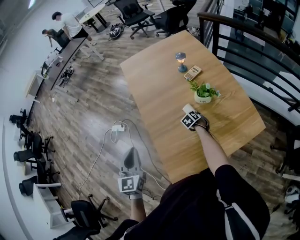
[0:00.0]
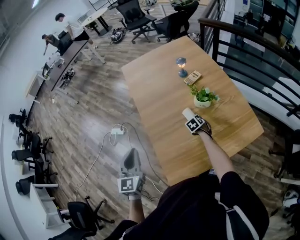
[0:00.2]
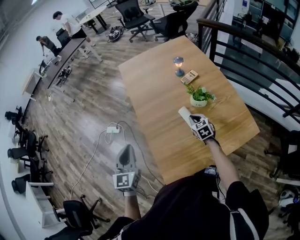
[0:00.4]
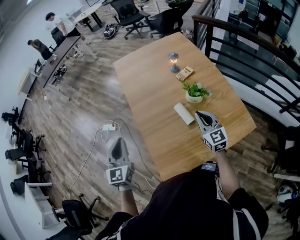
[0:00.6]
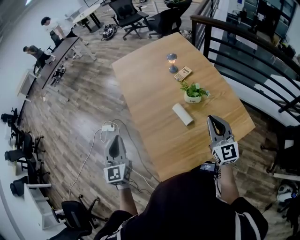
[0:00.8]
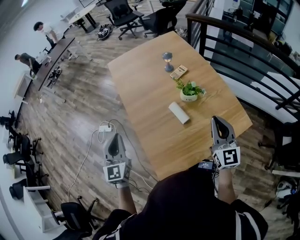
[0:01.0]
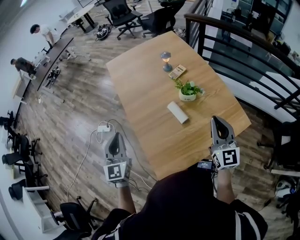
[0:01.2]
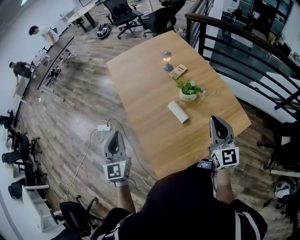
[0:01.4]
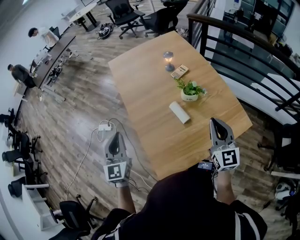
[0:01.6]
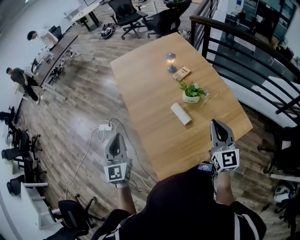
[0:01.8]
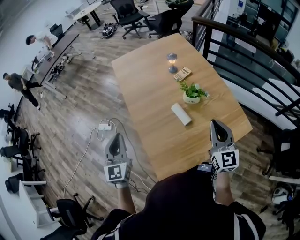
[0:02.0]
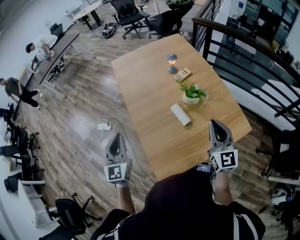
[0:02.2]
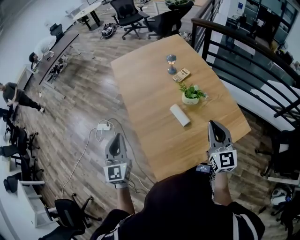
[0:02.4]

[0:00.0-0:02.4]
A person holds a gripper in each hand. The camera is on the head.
0.0 to 1.2 s: The right gripper shifts some 40 cm upward and backward, and tips its fingers upward by about 70 degrees. Meanwhile the left gripper changes place by roughly 5 cm.
1.2 to 2.4 s: The grippers make only small movements.

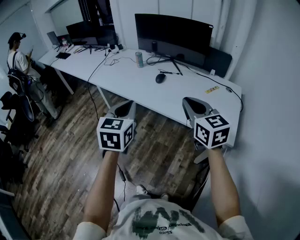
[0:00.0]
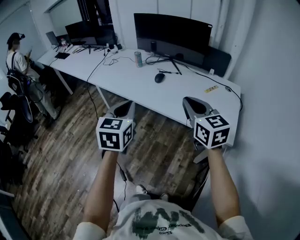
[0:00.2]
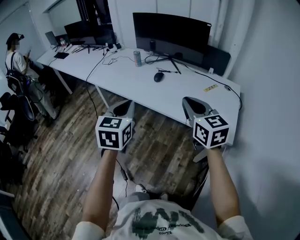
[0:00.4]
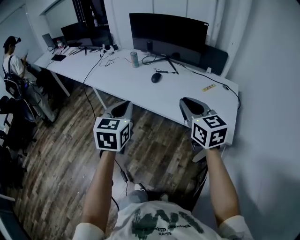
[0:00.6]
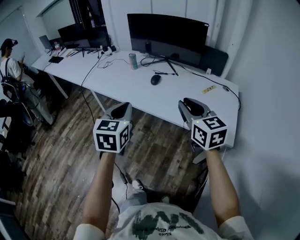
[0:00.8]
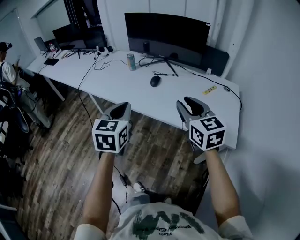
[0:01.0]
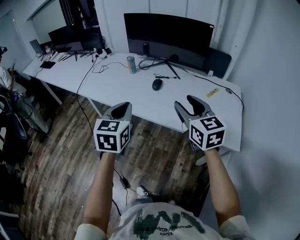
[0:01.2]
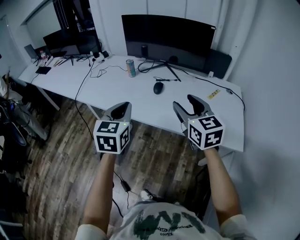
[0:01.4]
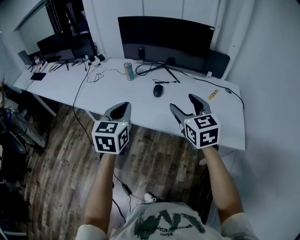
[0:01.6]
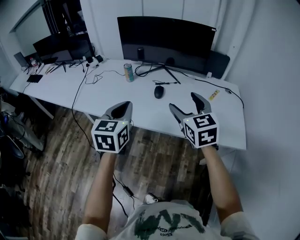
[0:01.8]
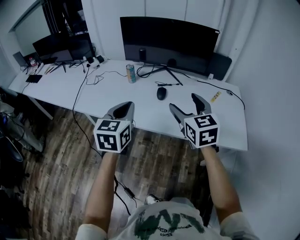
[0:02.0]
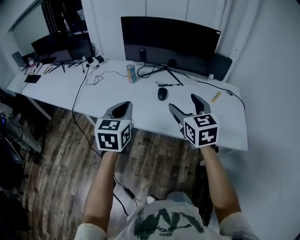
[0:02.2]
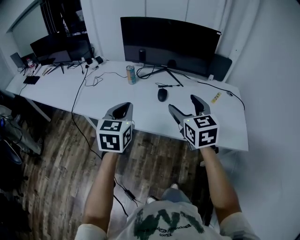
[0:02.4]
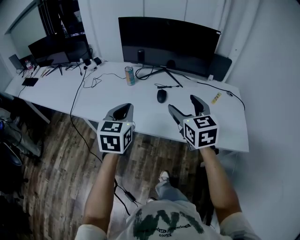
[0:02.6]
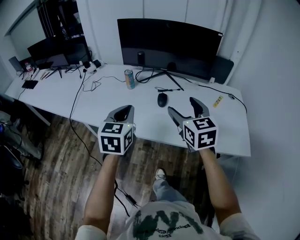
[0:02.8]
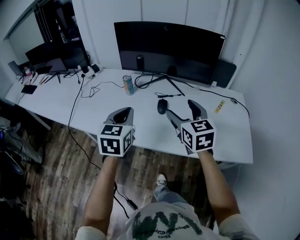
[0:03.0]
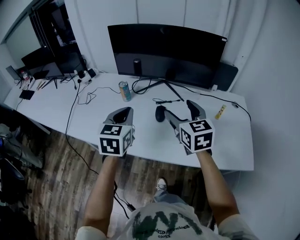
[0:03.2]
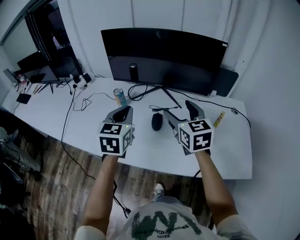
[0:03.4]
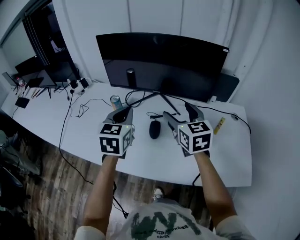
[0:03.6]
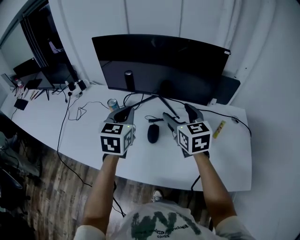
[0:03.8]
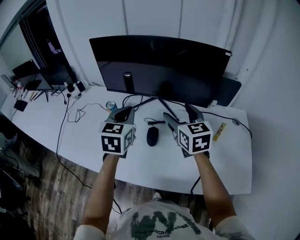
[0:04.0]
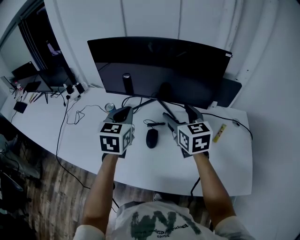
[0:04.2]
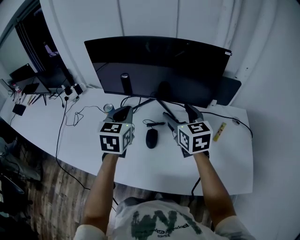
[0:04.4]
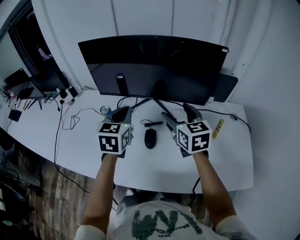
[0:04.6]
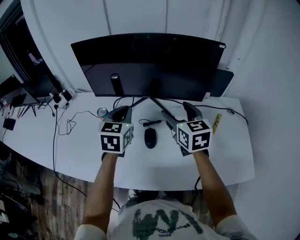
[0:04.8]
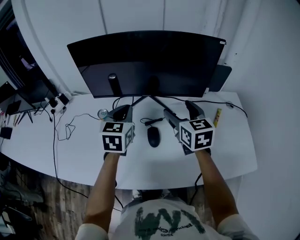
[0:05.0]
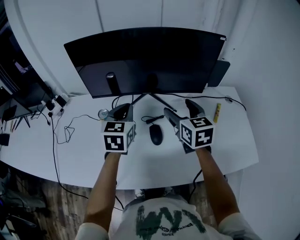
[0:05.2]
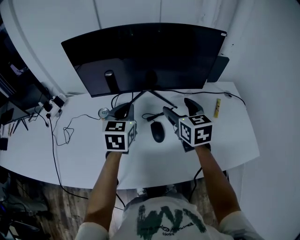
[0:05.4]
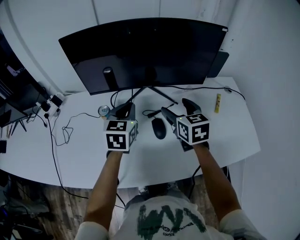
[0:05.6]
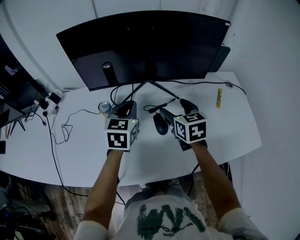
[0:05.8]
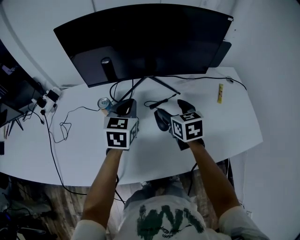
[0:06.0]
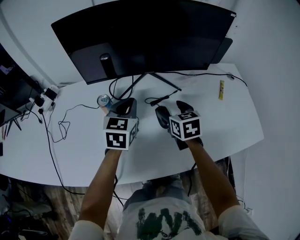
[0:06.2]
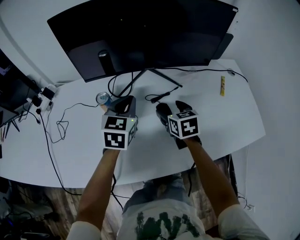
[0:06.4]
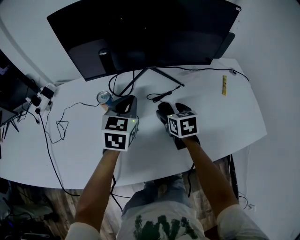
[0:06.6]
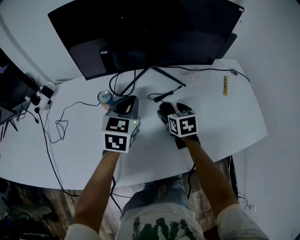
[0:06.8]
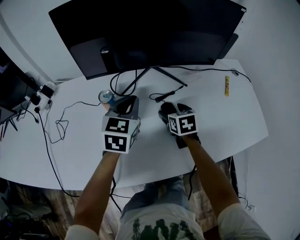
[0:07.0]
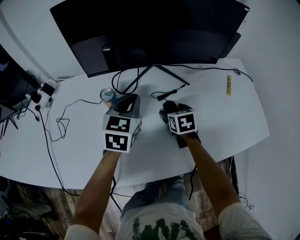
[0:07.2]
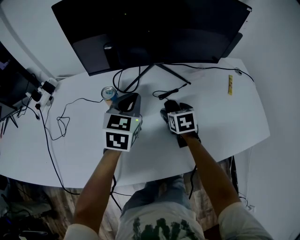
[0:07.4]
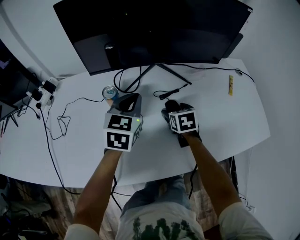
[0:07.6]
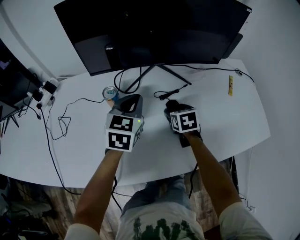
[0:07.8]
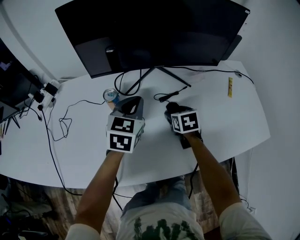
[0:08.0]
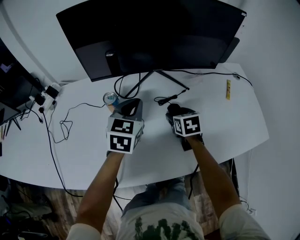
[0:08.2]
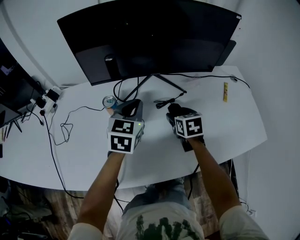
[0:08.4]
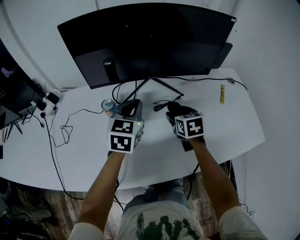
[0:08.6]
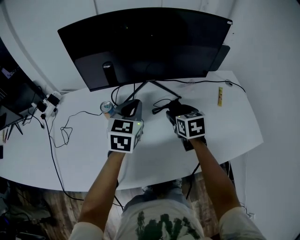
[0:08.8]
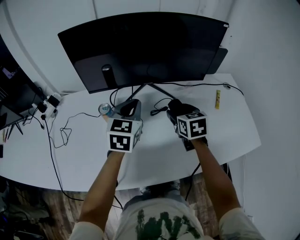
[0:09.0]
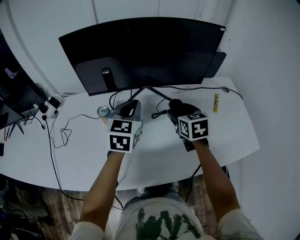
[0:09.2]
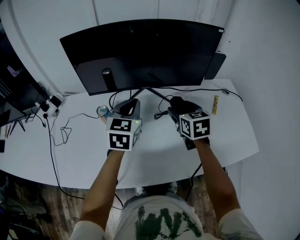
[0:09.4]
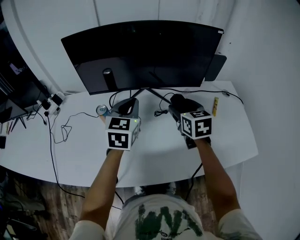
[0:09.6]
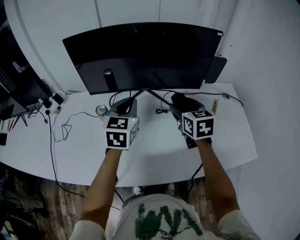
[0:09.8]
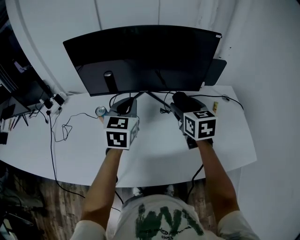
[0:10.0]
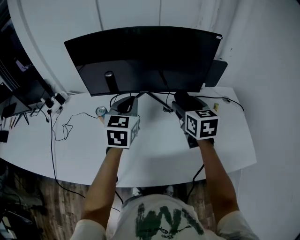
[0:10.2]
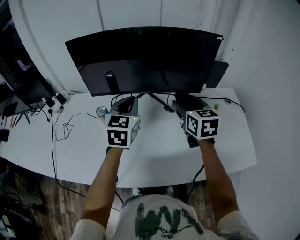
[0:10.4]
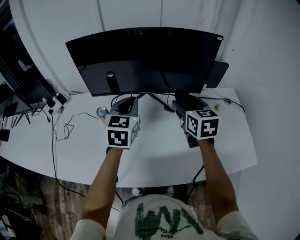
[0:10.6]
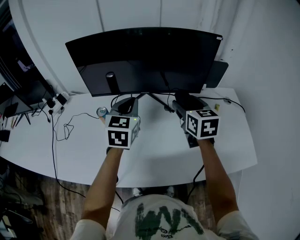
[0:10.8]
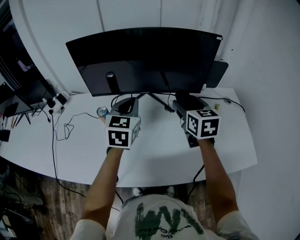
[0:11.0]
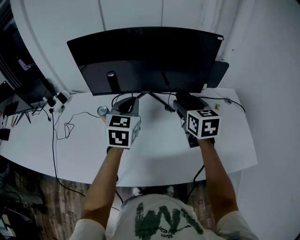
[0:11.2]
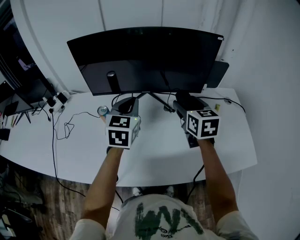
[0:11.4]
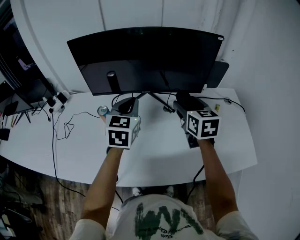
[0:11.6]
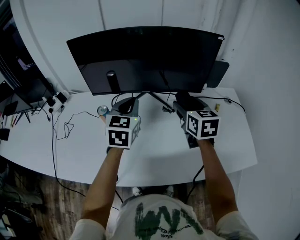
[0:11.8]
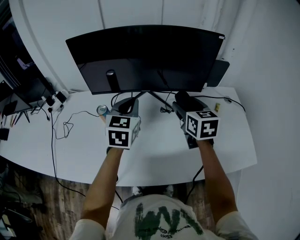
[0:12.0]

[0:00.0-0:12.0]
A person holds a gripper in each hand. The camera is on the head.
0.0 to 1.6 s: The right gripper is displaced forward and to the left by approximately 15 cm, and opens up, while the left gripper travels forward by roughly 20 cm.
1.6 to 3.0 s: Both grippers move forward, approximately 10 cm.
3.0 to 4.4 s: The grippers both shift forward by about 20 cm.
4.4 to 6.0 s: The left gripper travels downward by some 10 cm, and turns by about 20 degrees, while the right gripper is displaced downward and to the left by roughly 15 cm, and changes its angle by roughly 20 degrees.
6.0 to 7.6 s: The right gripper goes approximately 15 cm downward.
7.6 to 9.0 s: The left gripper moves upward, approximately 5 cm, while the right gripper goes roughly 15 cm upward and to the right.
9.0 to 10.4 s: The right gripper goes some 15 cm upward and to the right. The left gripper moves upward, approximately 5 cm.
10.4 to 12.0 s: Both grippers stay about where they are.

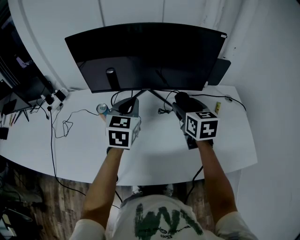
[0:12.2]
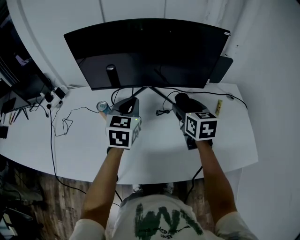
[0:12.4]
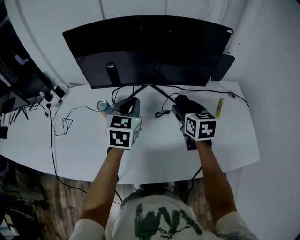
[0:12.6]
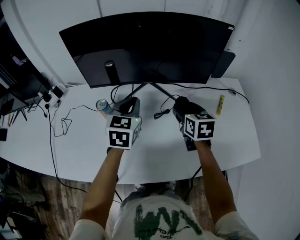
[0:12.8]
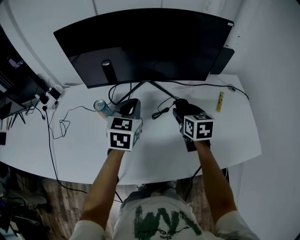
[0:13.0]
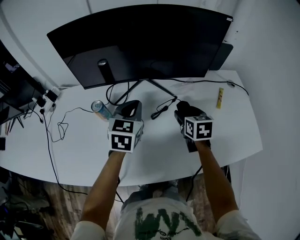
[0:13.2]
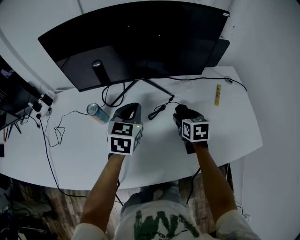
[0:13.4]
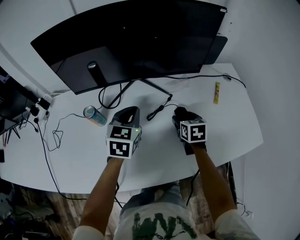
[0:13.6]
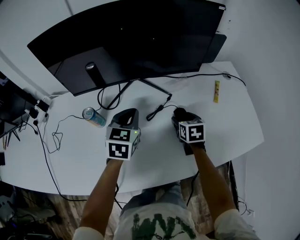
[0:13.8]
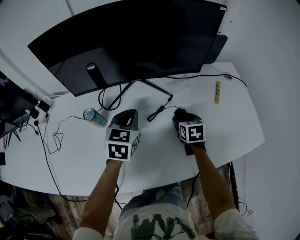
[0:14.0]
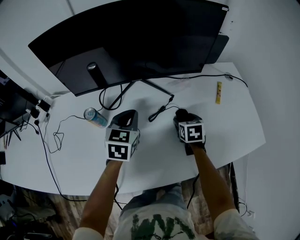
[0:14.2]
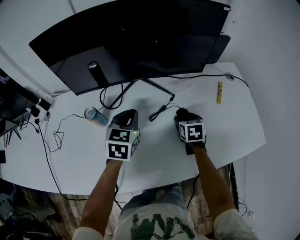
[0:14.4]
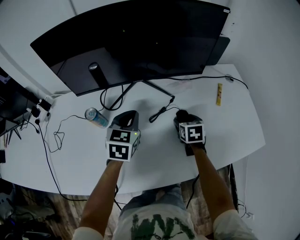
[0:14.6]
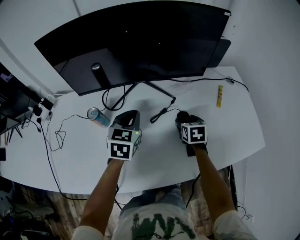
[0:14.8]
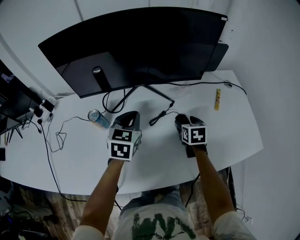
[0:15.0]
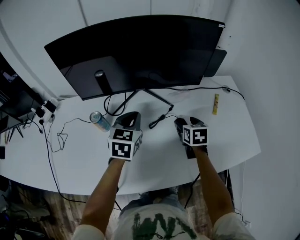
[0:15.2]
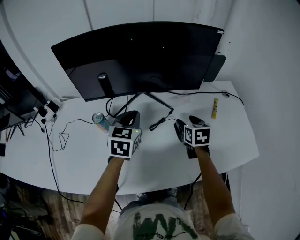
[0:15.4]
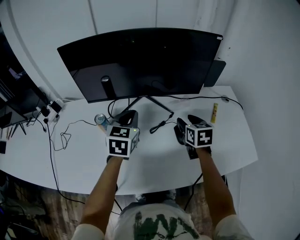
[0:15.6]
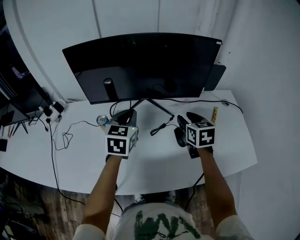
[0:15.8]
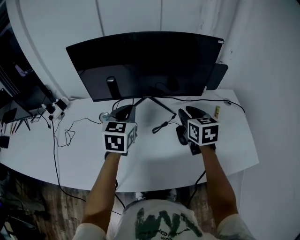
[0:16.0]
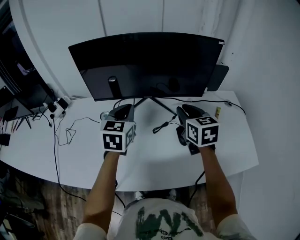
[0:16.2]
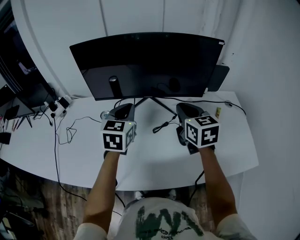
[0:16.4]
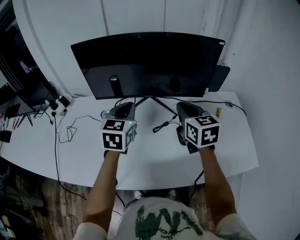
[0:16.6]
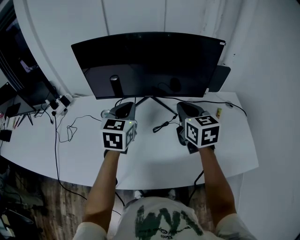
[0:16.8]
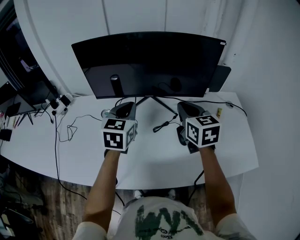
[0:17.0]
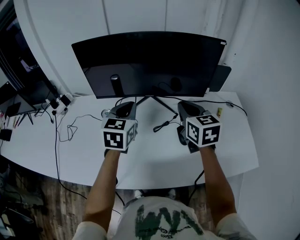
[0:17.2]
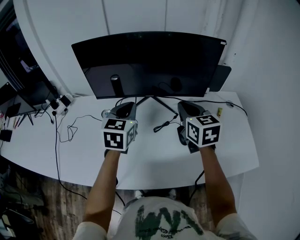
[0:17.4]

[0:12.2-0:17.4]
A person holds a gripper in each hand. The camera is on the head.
12.2 to 14.0 s: The left gripper moves downward, roughly 10 cm. The right gripper shifts approximately 20 cm downward, and swivels some 30 degrees.
14.0 to 15.6 s: The right gripper is displaced upward by roughly 15 cm; the left gripper shifts roughly 5 cm upward.
15.6 to 17.4 s: The left gripper heads upward, covering approximately 5 cm. The right gripper travels upward and to the left by approximately 15 cm, and closes its fingers.

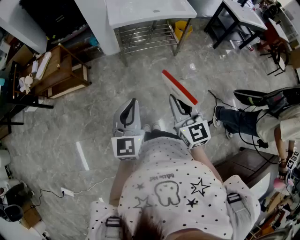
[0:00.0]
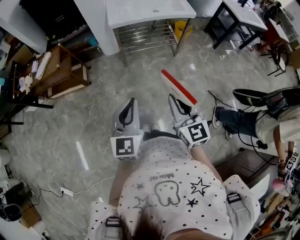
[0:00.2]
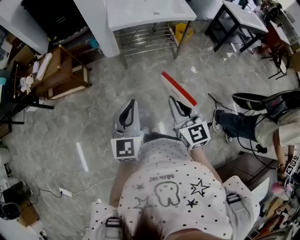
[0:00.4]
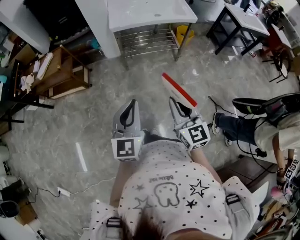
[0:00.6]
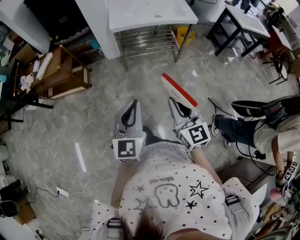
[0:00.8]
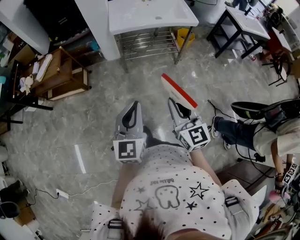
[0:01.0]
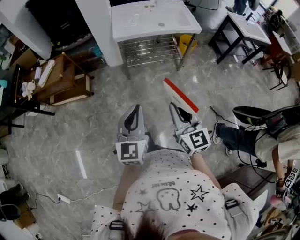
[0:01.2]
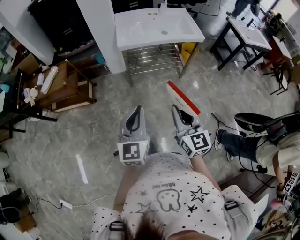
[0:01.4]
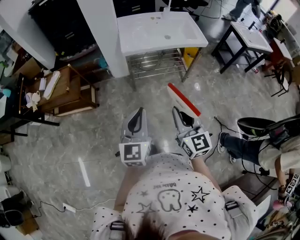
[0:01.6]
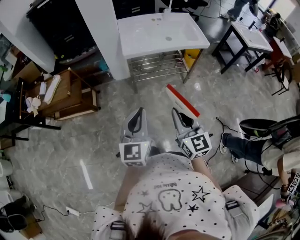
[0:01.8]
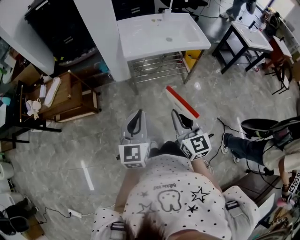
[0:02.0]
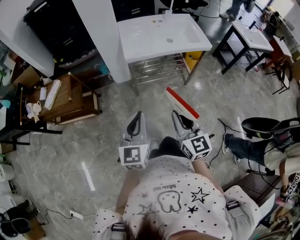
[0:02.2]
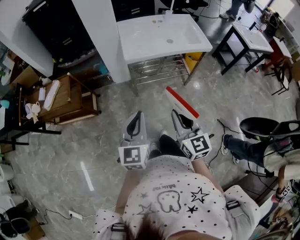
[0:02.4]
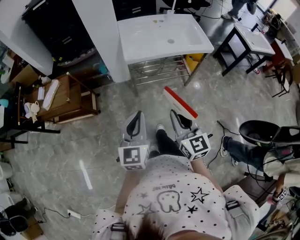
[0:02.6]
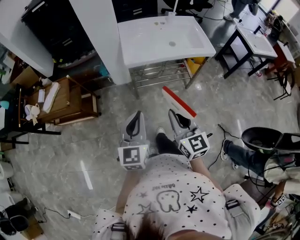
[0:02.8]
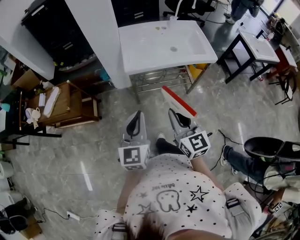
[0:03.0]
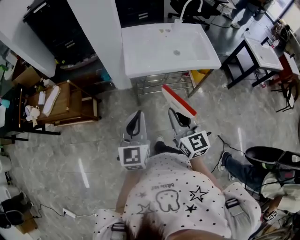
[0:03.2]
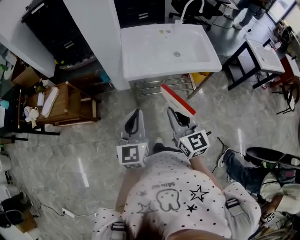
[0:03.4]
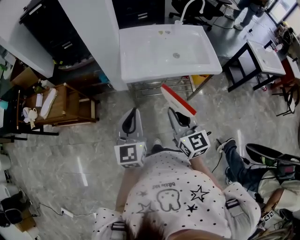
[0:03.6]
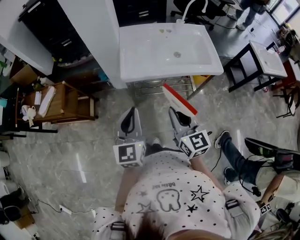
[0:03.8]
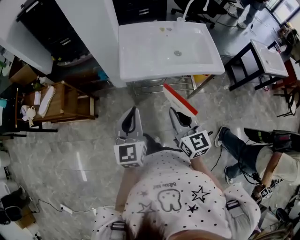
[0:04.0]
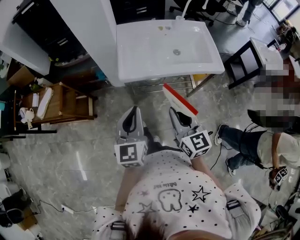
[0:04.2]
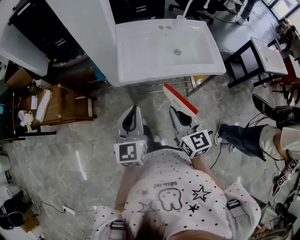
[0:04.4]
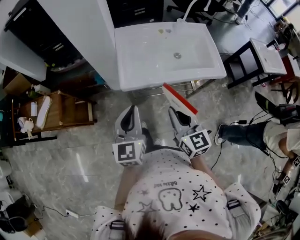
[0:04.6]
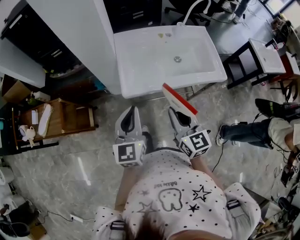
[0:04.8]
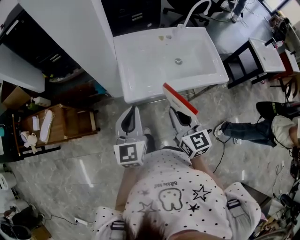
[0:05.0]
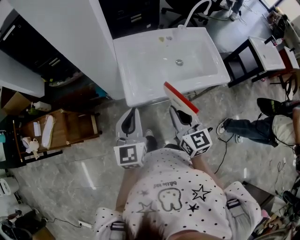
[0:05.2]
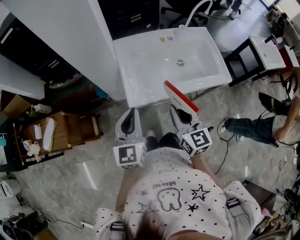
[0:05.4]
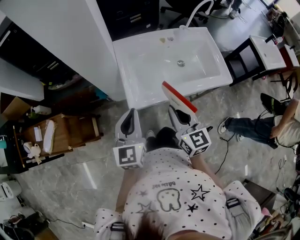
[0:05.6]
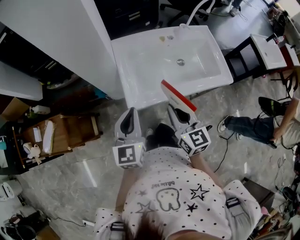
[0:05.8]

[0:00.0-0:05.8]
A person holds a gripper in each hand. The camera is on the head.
0.0 to 1.4 s: Both grippers move forward, roughly 10 cm.
1.4 to 2.8 s: The grippers both shift forward by approximately 15 cm.
2.8 to 4.4 s: Both grippers move forward, approximately 20 cm.
4.4 to 5.8 s: Both grippers travel together forward, some 15 cm.
